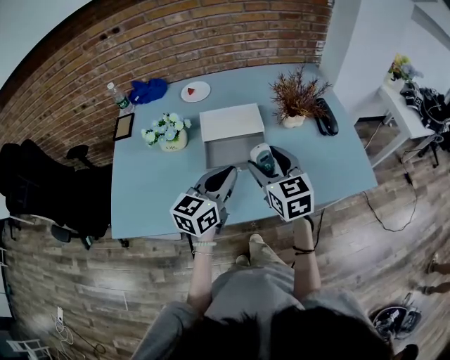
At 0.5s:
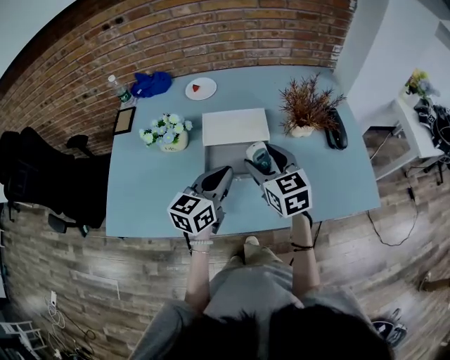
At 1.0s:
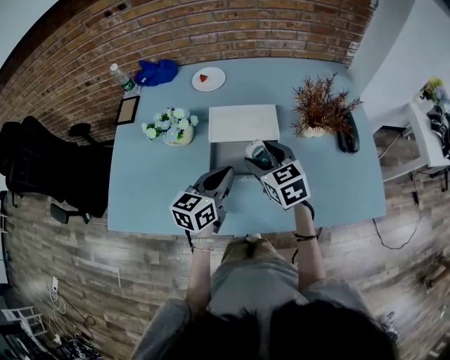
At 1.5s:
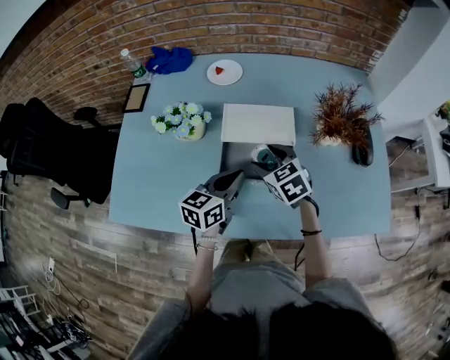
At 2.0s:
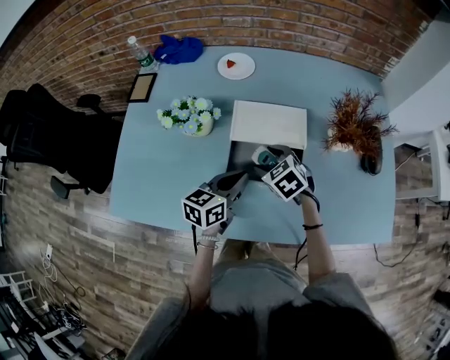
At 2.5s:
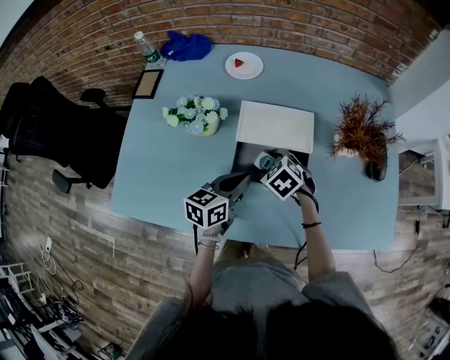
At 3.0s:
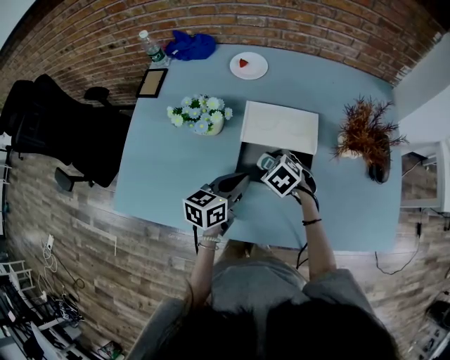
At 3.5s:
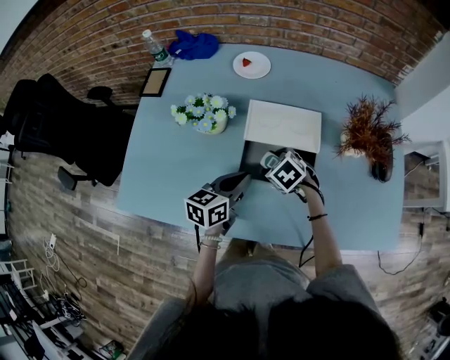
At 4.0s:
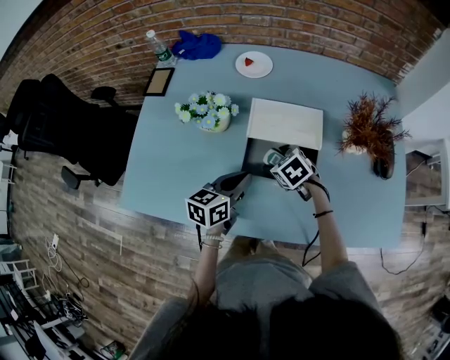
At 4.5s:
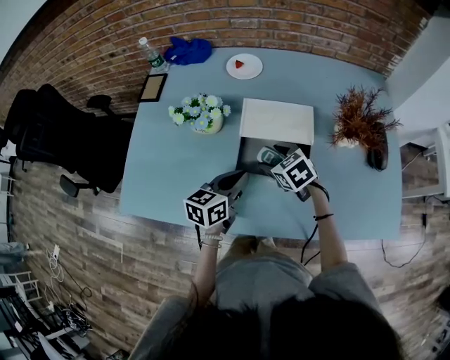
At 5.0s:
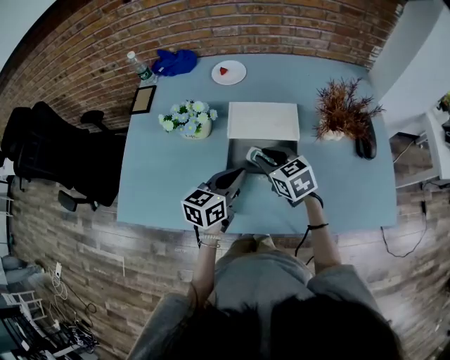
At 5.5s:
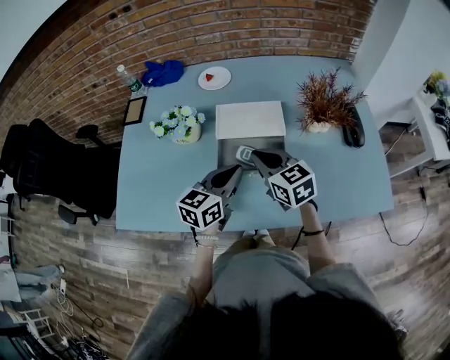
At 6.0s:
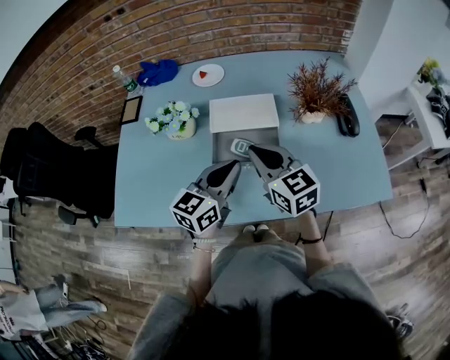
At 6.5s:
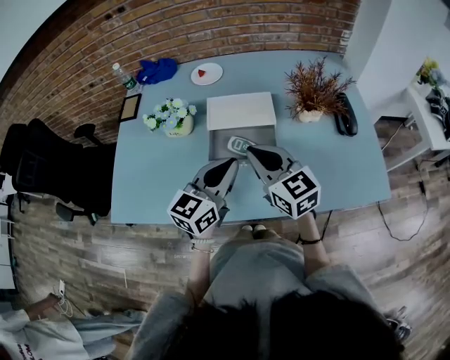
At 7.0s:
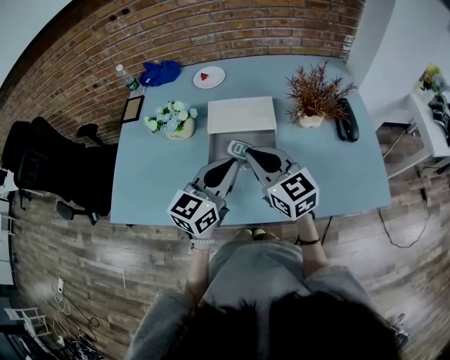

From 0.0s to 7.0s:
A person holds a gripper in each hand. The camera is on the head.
From 0.0s to 2.0s: The right gripper goes some 25 cm downward, forward and to the left, and tilts its fingers about 30 degrees downward; the left gripper goes approximately 15 cm downward and forward, and rotates about 20 degrees.
From 2.0s to 3.5s: The right gripper is displaced downward by approximately 5 cm.
From 3.5s to 5.0s: The left gripper ends up some 5 cm from where it was; the right gripper moves upward, approximately 10 cm, tips its fingers upward by approximately 30 degrees, and closes its fingers.
From 5.0s to 7.0s: The left gripper goes approximately 10 cm upward, and rotates roughly 20 degrees, while the right gripper shifts roughly 15 cm upward and backward, and turns by approximately 30 degrees.

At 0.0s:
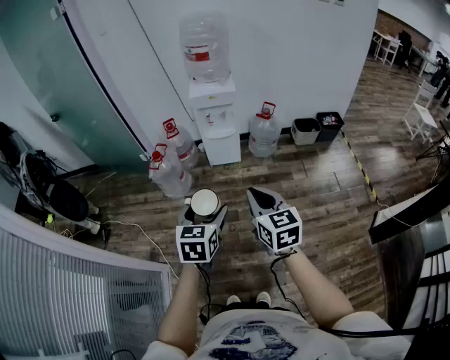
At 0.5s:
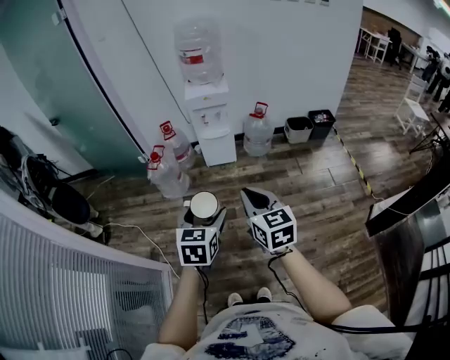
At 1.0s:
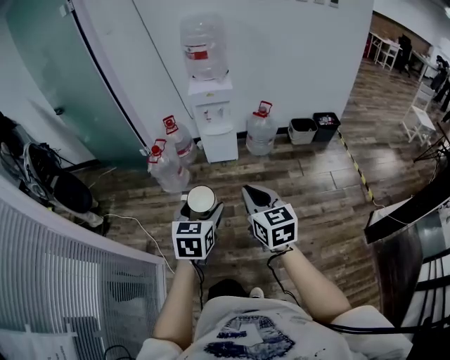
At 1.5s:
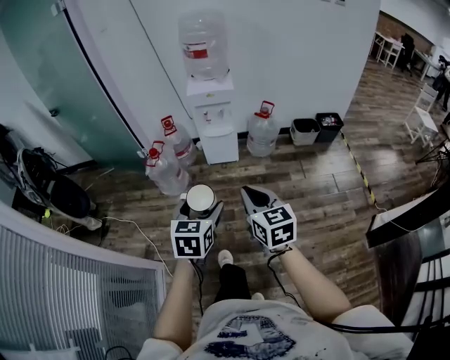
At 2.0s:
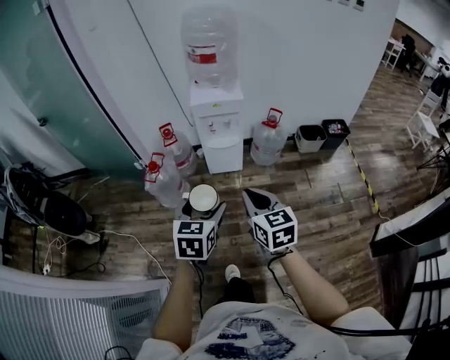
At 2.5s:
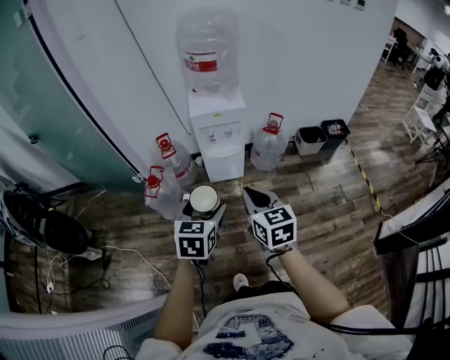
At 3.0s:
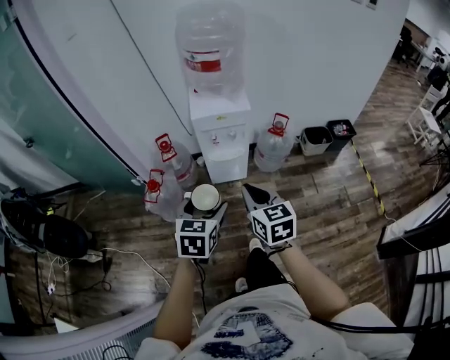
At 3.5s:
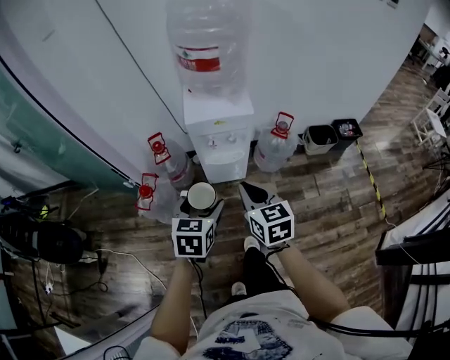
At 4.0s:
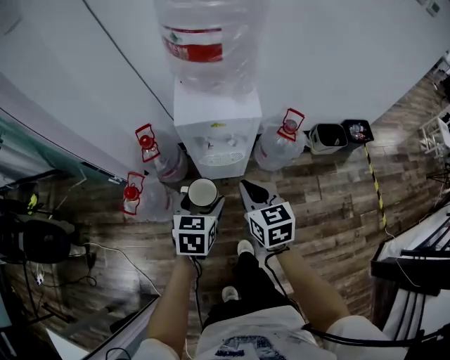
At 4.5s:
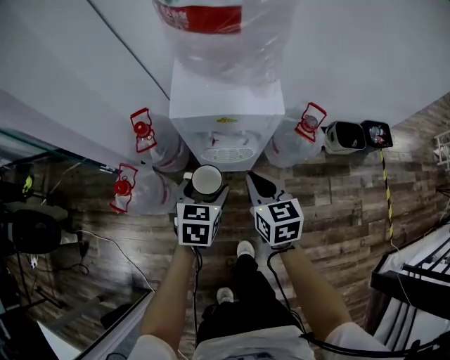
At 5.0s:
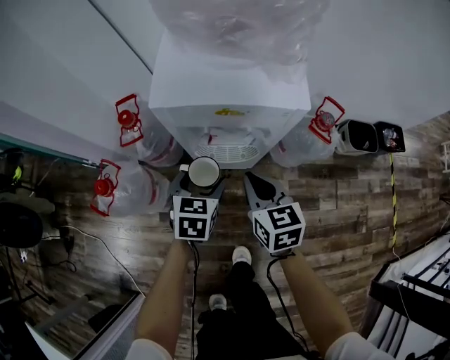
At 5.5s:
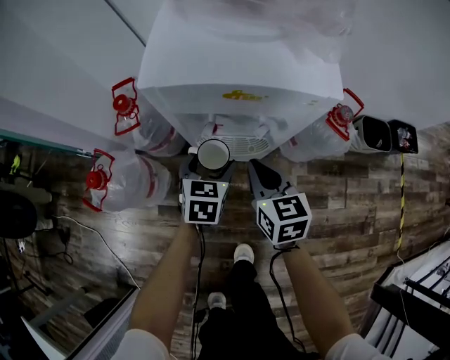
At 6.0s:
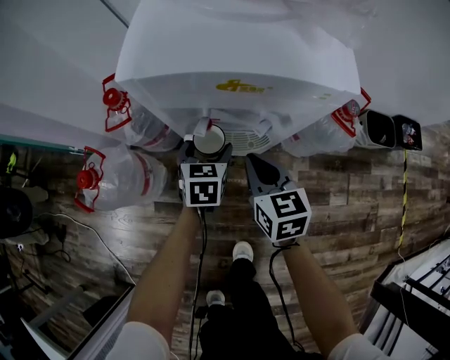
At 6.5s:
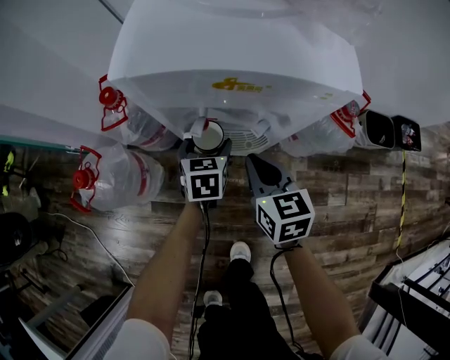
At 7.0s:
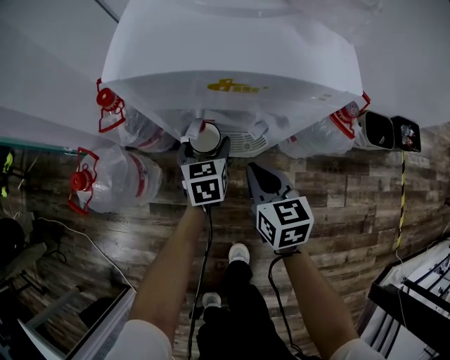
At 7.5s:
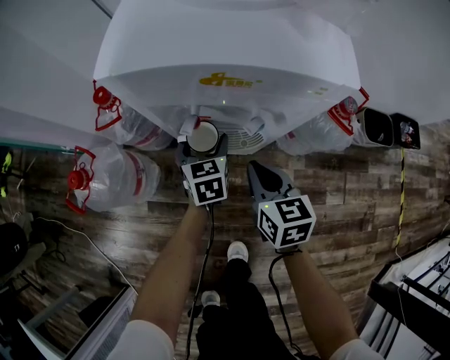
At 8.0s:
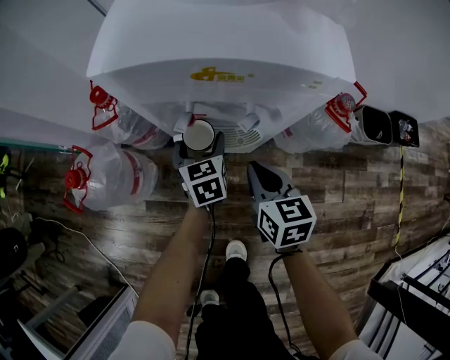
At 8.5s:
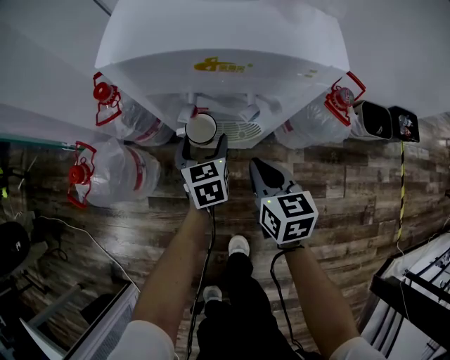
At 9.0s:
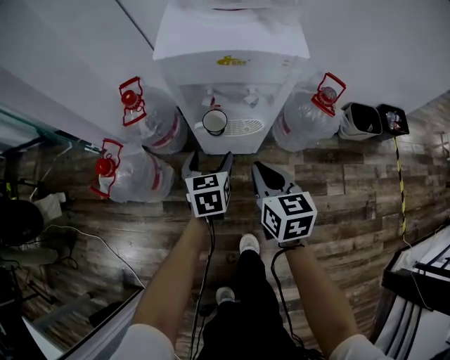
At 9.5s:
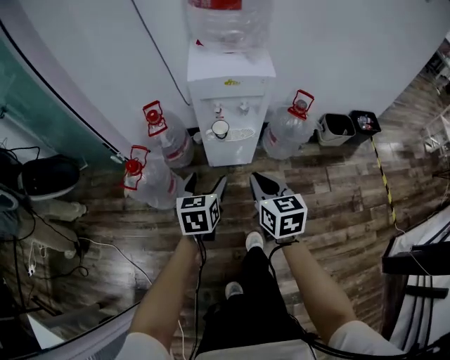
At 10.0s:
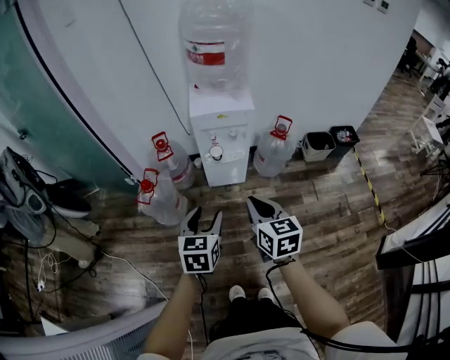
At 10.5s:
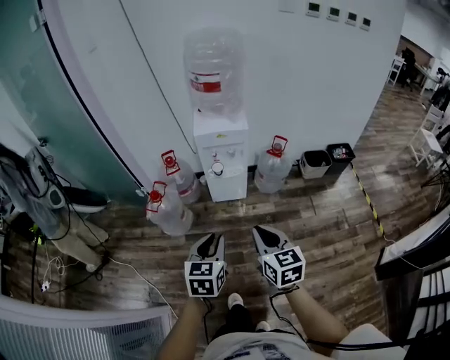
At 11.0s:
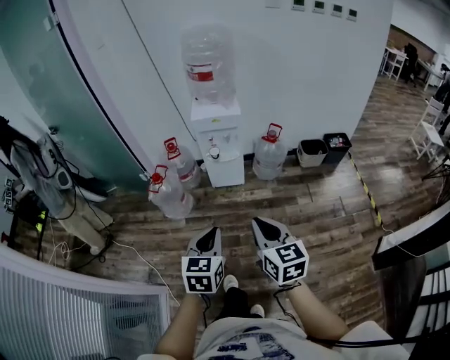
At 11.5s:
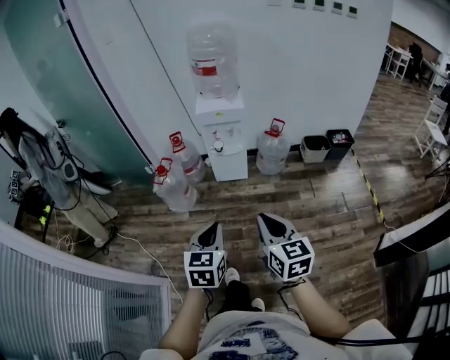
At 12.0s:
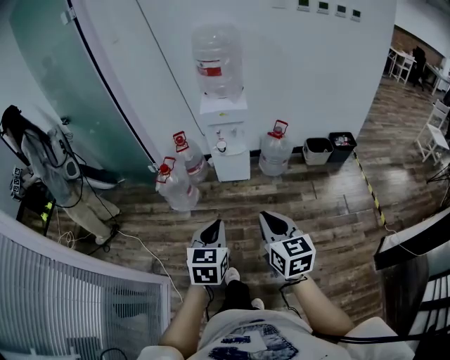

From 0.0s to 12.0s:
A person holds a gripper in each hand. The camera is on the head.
From 0.0s to 2.0s: The two grippers go some 15 cm forward.
From 2.0s to 4.0s: The right gripper is displaced forward by some 40 cm; the left gripper heads forward and downward, covering some 40 cm.
From 4.0s to 6.0s: The two grippers go some 35 cm downward and forward.
From 6.0s to 8.0s: The grippers make only small movements.
From 8.0s to 10.0s: The left gripper shifts roughly 60 cm backward and upward, and turns by approximately 20 degrees, while the right gripper heads upward and backward, covering roughly 50 cm.
From 10.0s to 12.0s: The grippers both shift backward by some 30 cm. The left gripper closes its fingers.

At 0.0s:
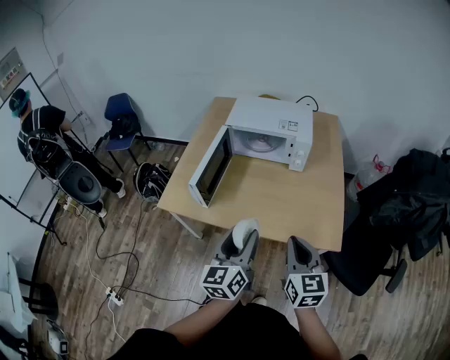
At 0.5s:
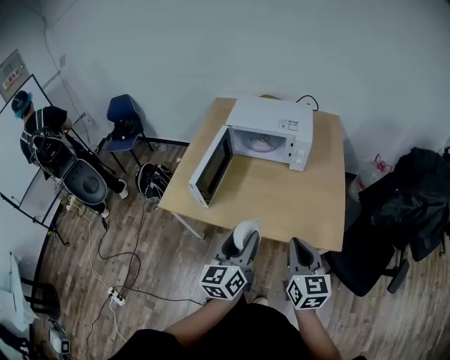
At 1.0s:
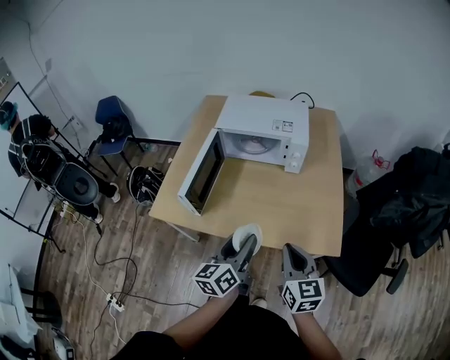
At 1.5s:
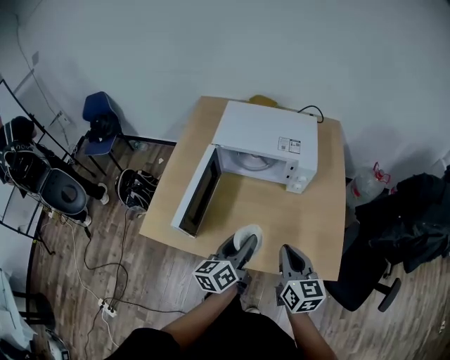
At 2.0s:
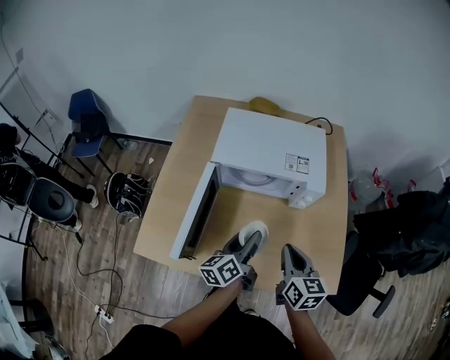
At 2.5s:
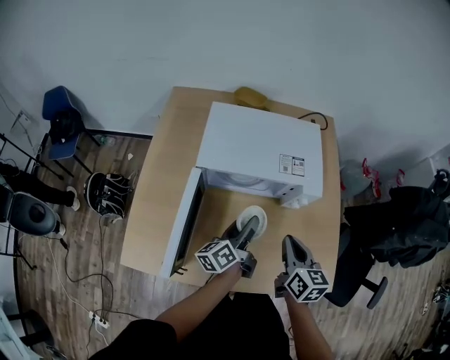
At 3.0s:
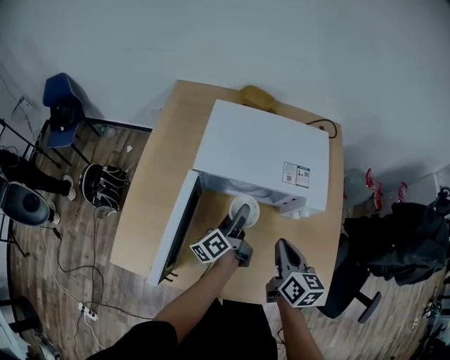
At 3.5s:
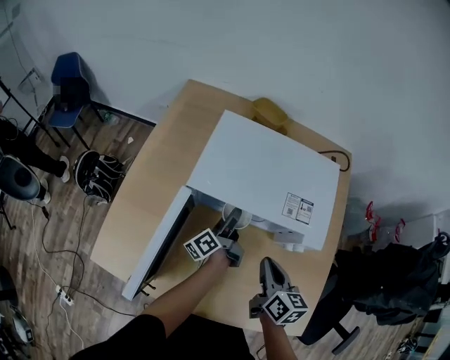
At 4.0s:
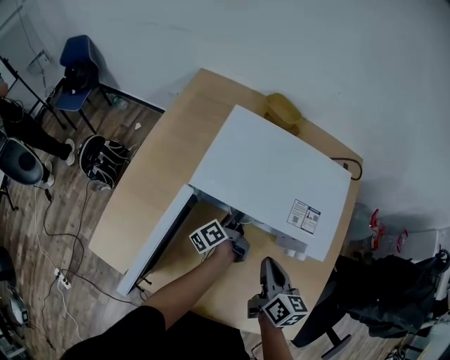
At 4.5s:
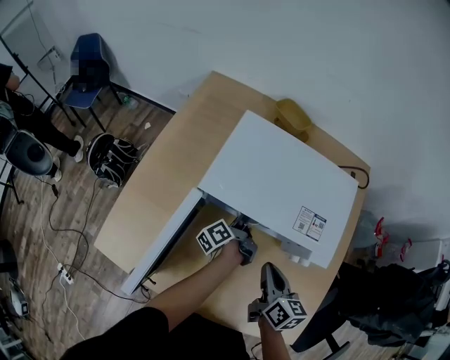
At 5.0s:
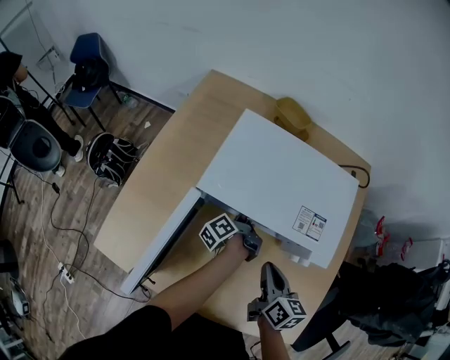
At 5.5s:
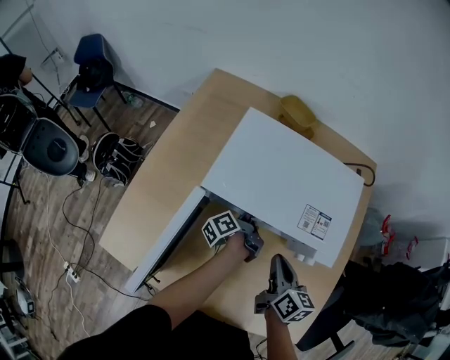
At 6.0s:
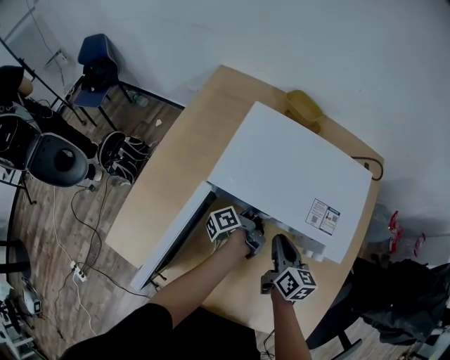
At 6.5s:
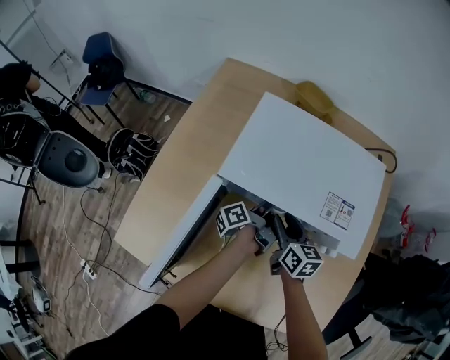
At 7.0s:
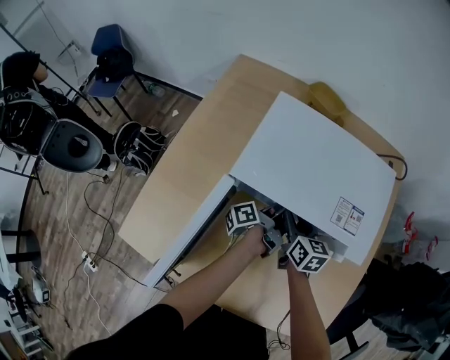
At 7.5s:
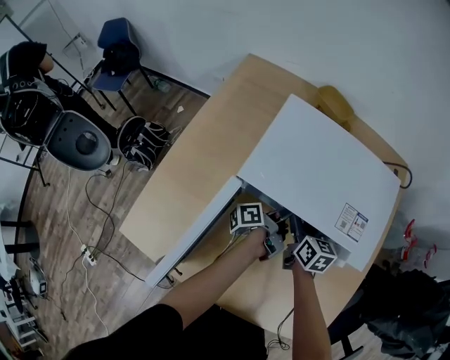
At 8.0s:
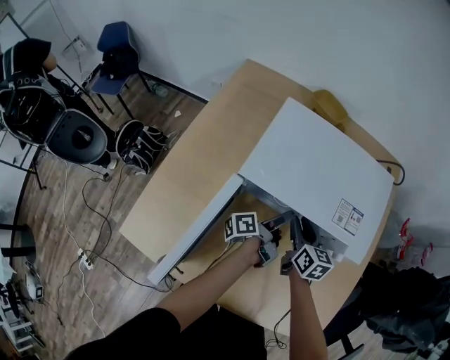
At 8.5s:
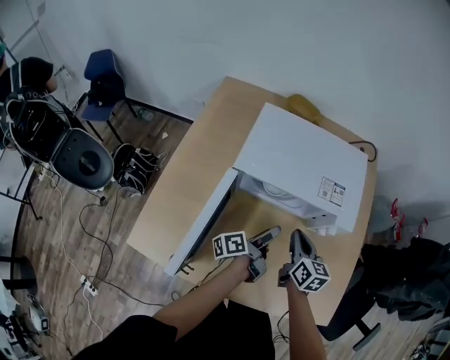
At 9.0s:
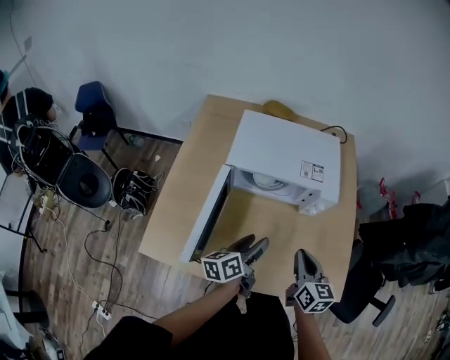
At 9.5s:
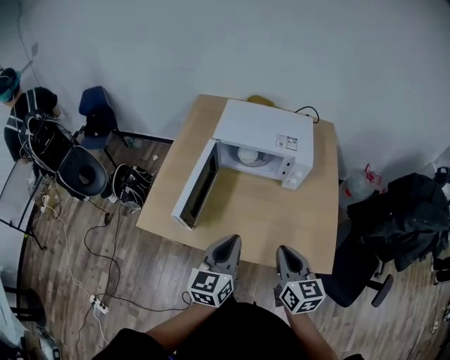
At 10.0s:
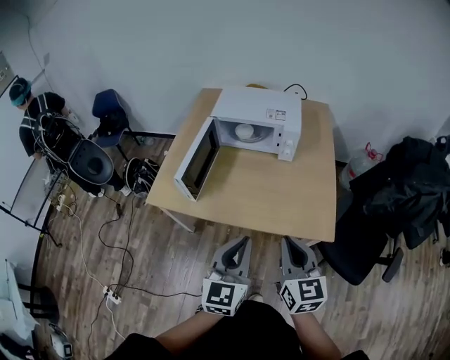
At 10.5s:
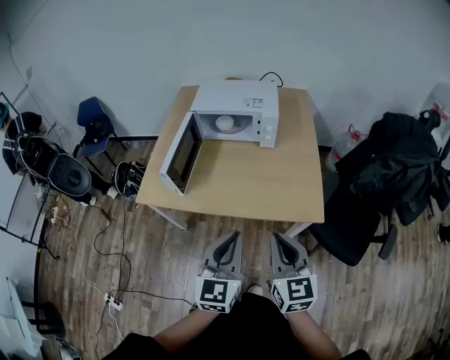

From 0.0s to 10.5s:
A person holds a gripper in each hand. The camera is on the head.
From 0.0s to 2.0s: The grippers both shift forward by some 25 cm. The left gripper swivels some 30 degrees.
From 2.0s to 4.0s: The left gripper goes about 30 cm forward and downward, and changes its angle by some 30 degrees, while the right gripper shifts approximately 15 cm forward and downward.
From 4.0s to 6.5s: The right gripper moves forward and downward, roughly 15 cm, and opens up.
From 6.5s to 8.5s: The two grippers go approximately 15 cm backward and upward. The right gripper closes.
From 8.5s to 10.5s: Both grippers are carried backward, some 50 cm. The left gripper shifts roughly 20 cm upward, twists roughly 90 degrees clockwise, seen from behind, and closes its fingers; the right gripper changes its angle by about 30 degrees.
